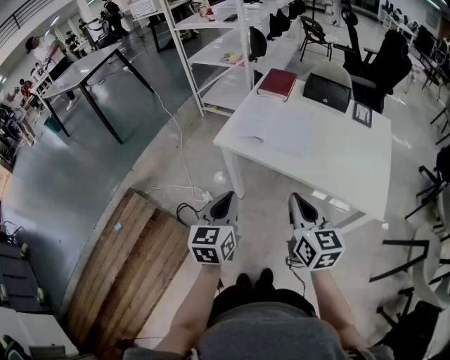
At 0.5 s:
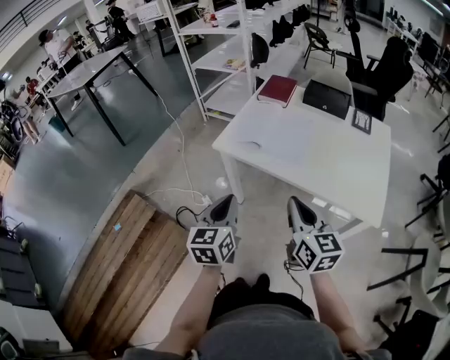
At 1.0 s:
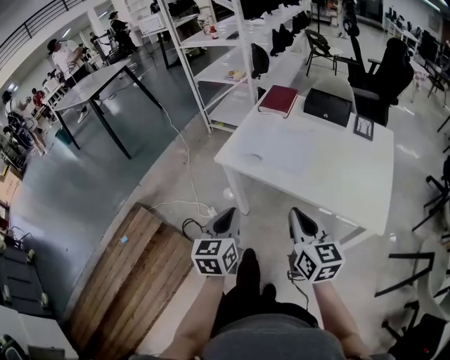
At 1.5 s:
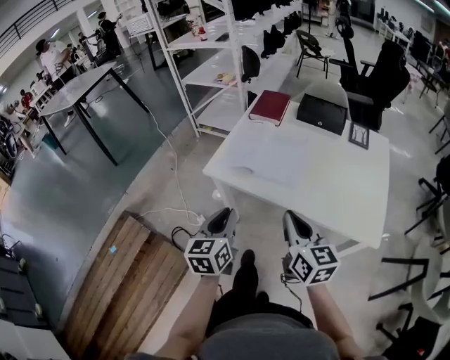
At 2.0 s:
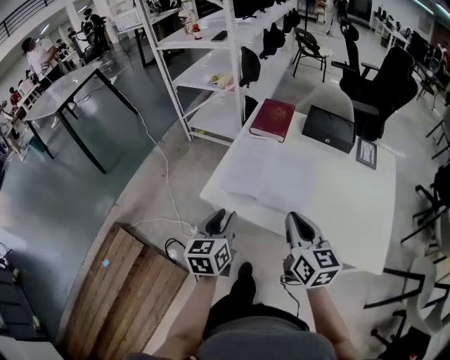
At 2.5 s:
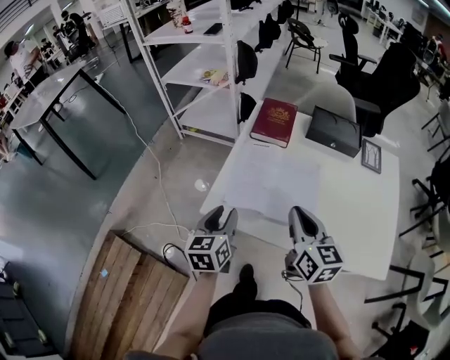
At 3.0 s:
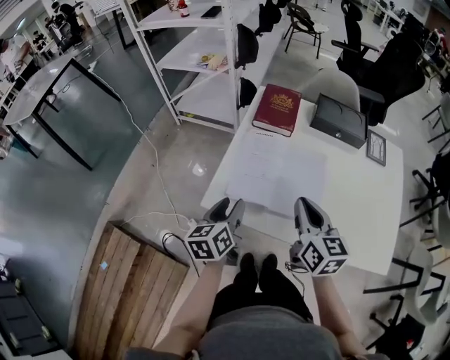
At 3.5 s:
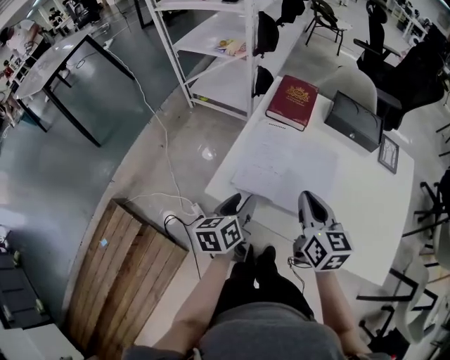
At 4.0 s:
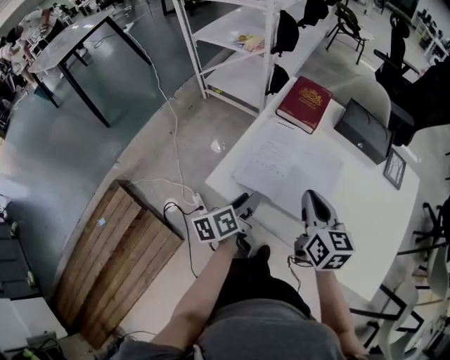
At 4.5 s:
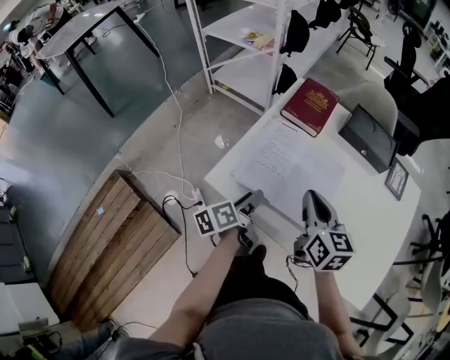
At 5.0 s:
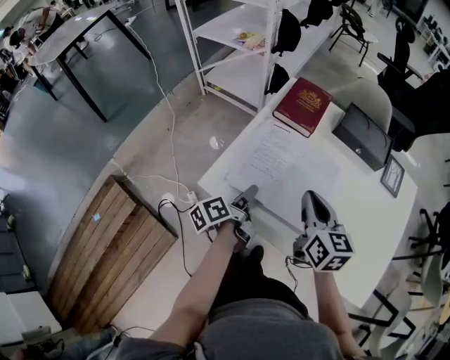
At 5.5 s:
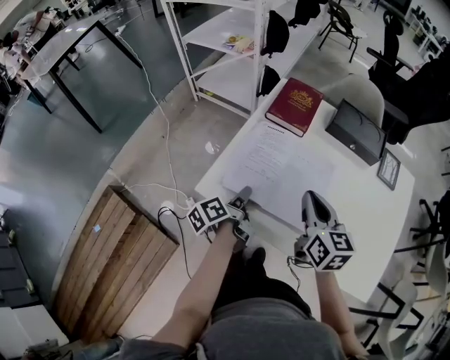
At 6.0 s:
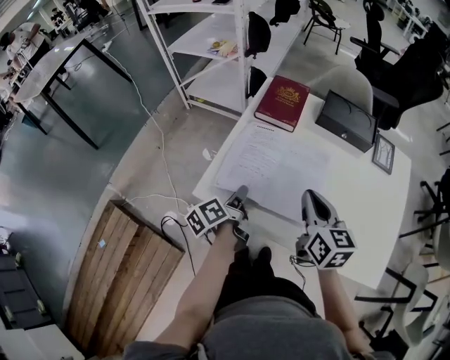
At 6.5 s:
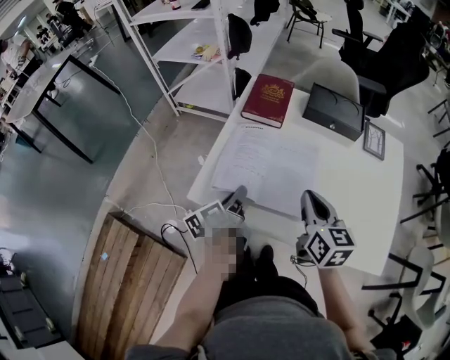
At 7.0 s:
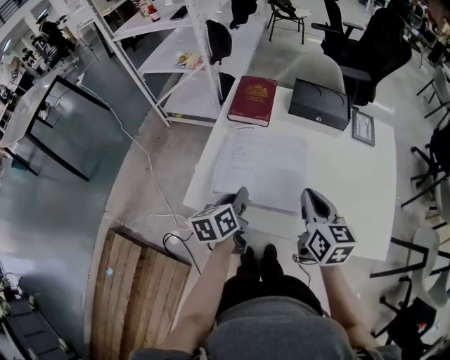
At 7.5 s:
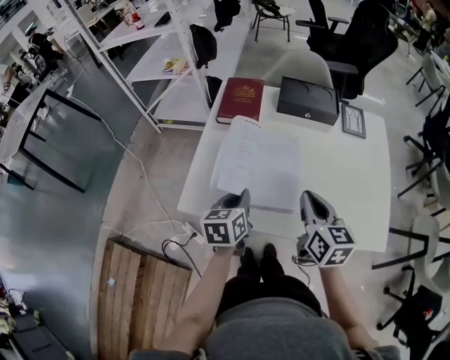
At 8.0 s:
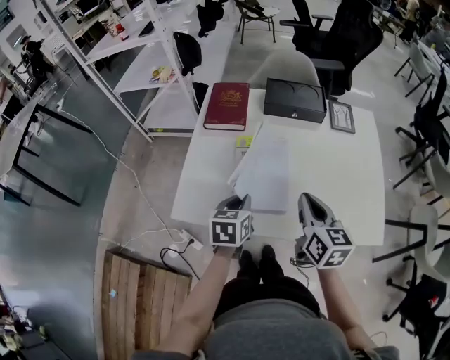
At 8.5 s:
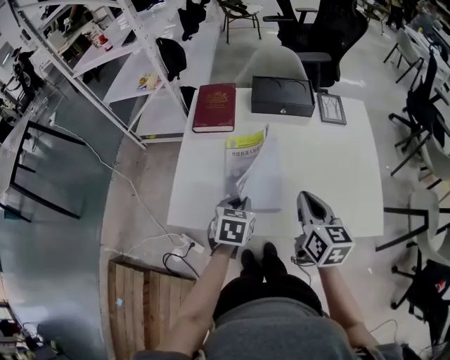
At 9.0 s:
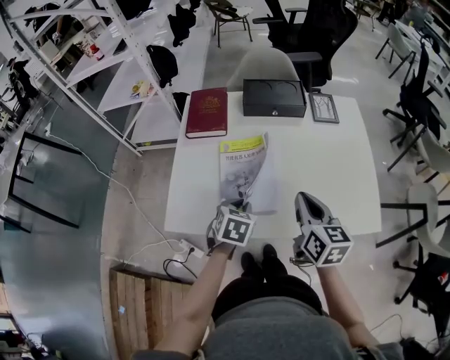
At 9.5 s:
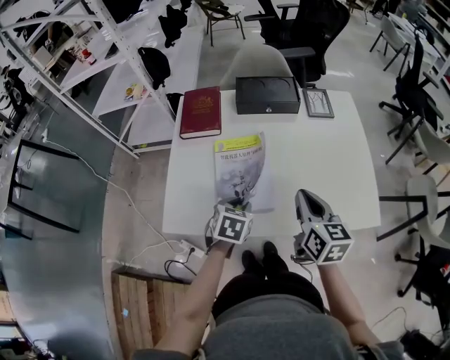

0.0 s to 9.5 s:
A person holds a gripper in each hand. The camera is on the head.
0.0 to 2.0 s: The two grippers go roughly 20 cm forward. The left gripper opens.
2.0 to 4.0 s: The left gripper moves forward and downward, approximately 10 cm, and rotates around the line of its fingers by approximately 40 degrees, counterclockwise from behind; the right gripper travels forward by some 10 cm.
5.5 to 7.5 s: The left gripper moves to the right and upward, some 10 cm, and rolls clockwise, seen from behind, by roughly 60 degrees. The right gripper heads to the right and backward, covering some 10 cm.
7.5 to 9.5 s: The right gripper goes roughly 5 cm to the right. Meanwhile the left gripper is displaced to the right and downward by about 10 cm, and swivels approximately 40 degrees.

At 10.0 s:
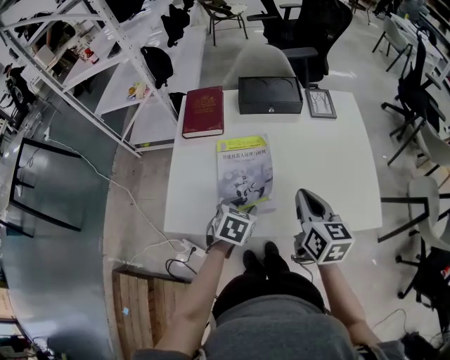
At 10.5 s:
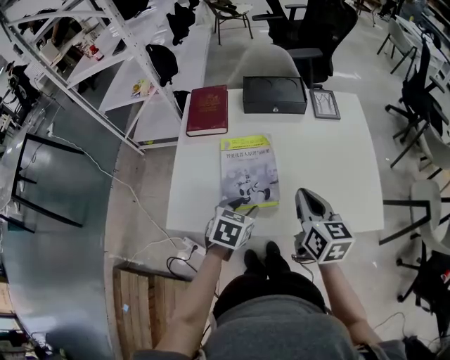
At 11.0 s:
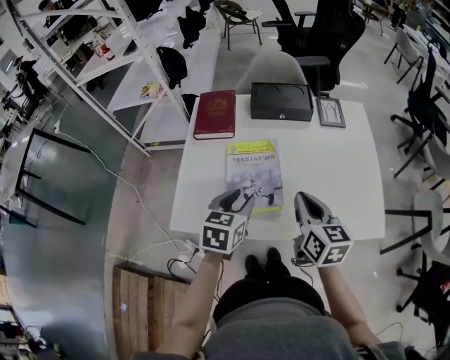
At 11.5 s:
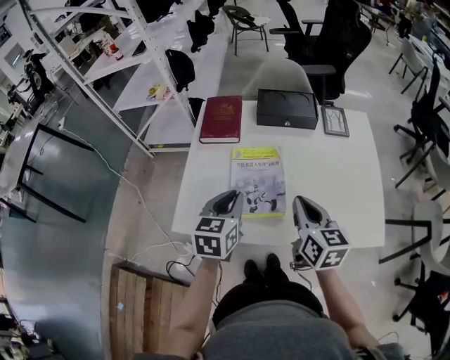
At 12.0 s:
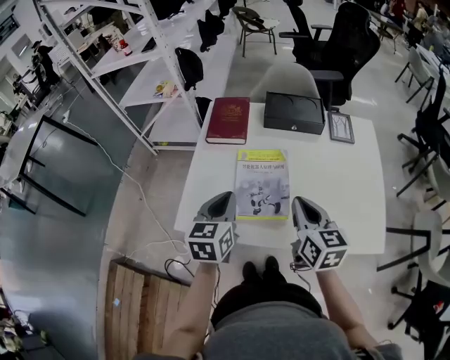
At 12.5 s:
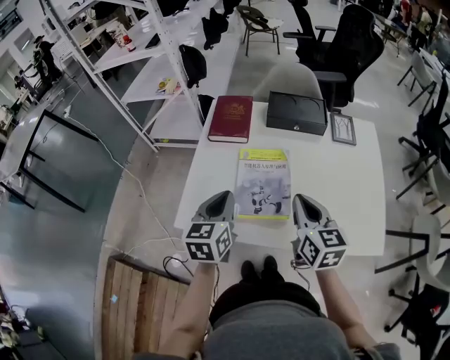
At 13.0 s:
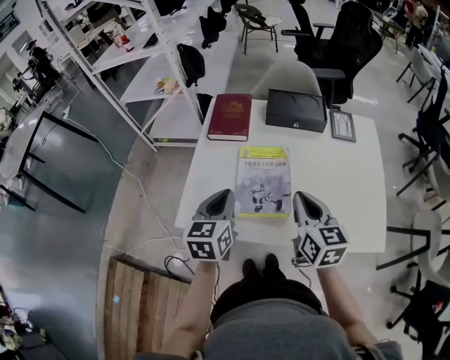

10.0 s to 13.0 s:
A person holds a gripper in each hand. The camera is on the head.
10.0 to 11.5 s: The left gripper goes about 15 cm upward and to the left, changes its angle by some 30 degrees, and closes.
11.5 to 13.0 s: The grippers make only small movements.

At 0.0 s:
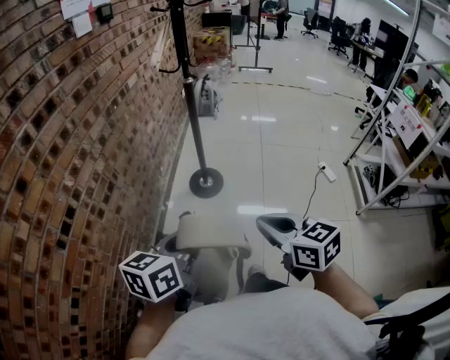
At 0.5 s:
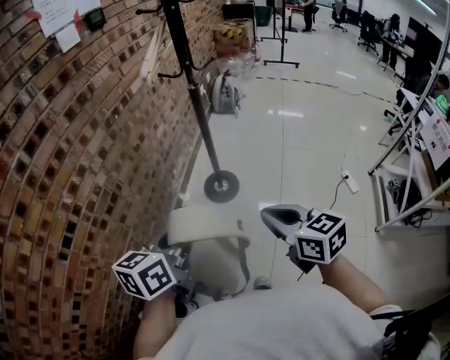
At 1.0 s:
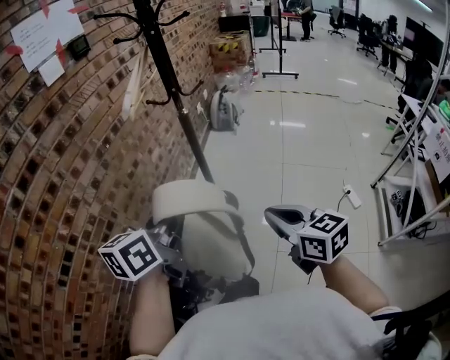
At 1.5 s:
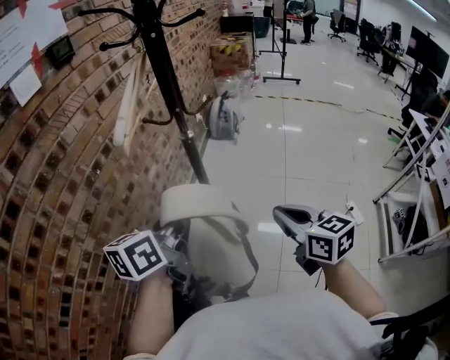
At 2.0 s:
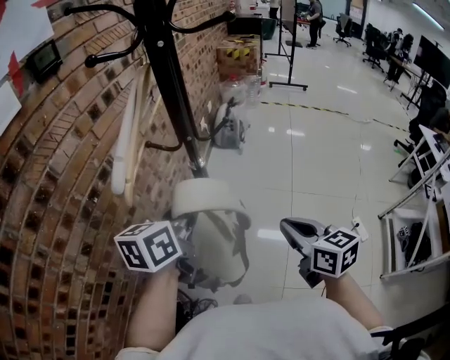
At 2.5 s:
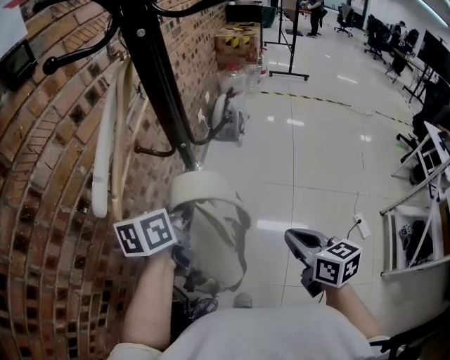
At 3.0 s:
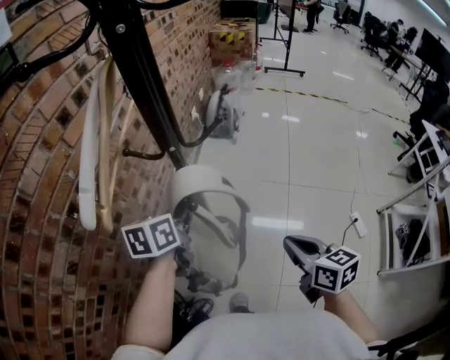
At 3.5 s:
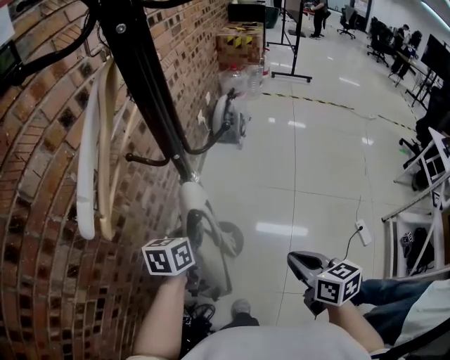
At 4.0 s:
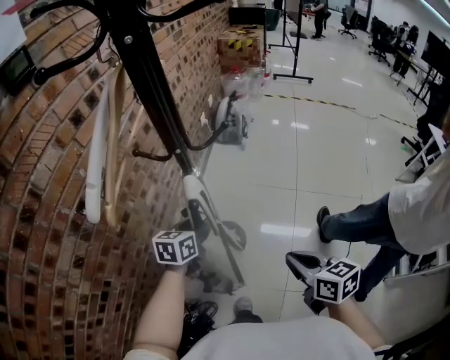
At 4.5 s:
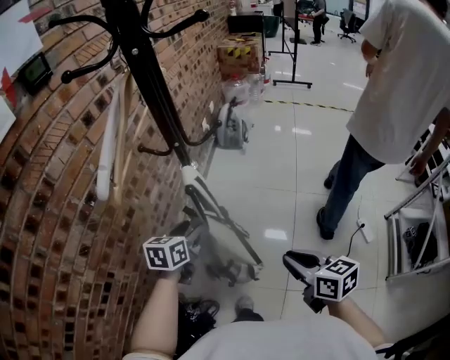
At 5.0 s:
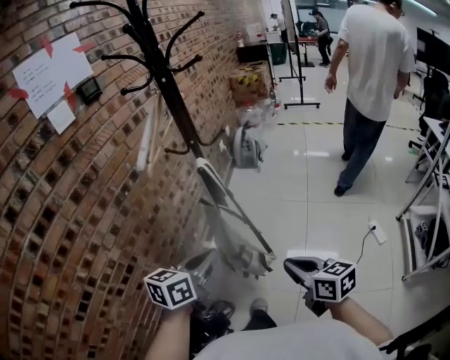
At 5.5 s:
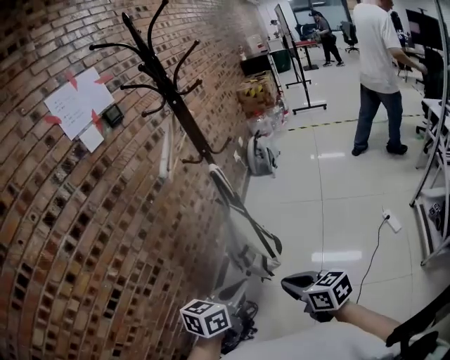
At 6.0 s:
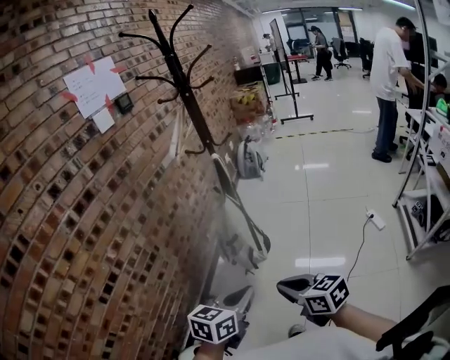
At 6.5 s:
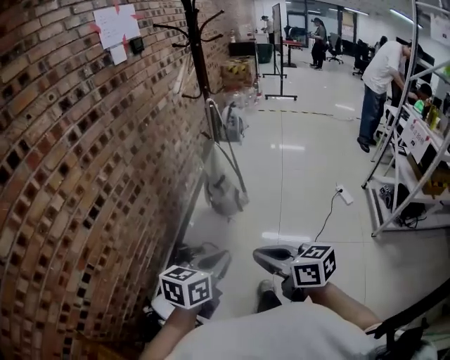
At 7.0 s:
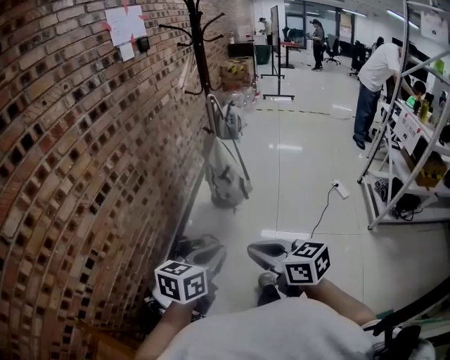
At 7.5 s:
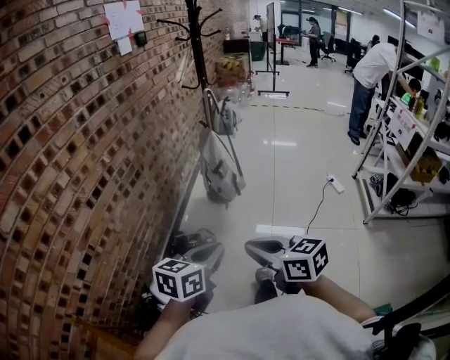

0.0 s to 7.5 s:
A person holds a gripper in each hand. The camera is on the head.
0.0 to 2.0 s: The two grippers travel together, forward, some 50 cm.
2.0 to 4.0 s: The right gripper shifts about 10 cm downward. Meanwhile the left gripper shifts approximately 20 cm downward, and opens its fingers.
4.0 to 5.5 s: The two grippers go about 40 cm backward. The left gripper closes its fingers.
5.5 to 7.5 s: The grippers both shift backward and to the left by approximately 35 cm.

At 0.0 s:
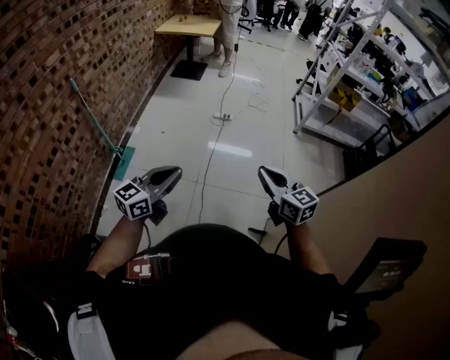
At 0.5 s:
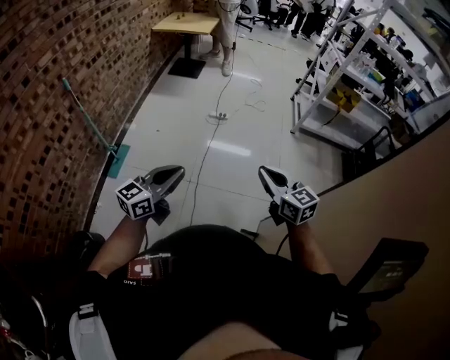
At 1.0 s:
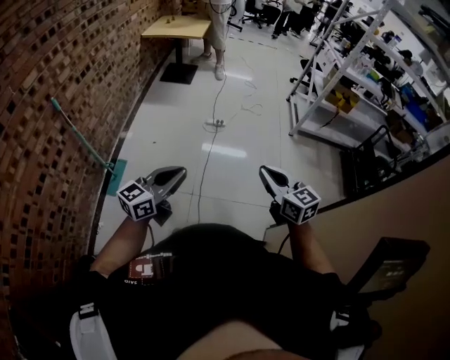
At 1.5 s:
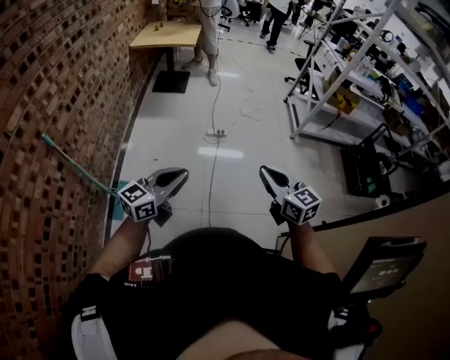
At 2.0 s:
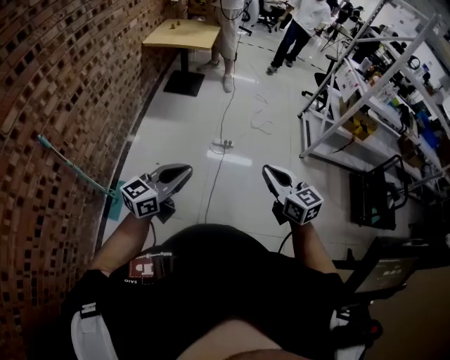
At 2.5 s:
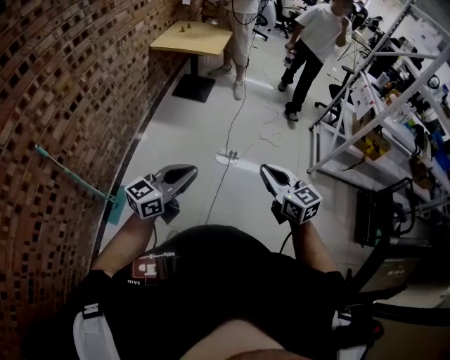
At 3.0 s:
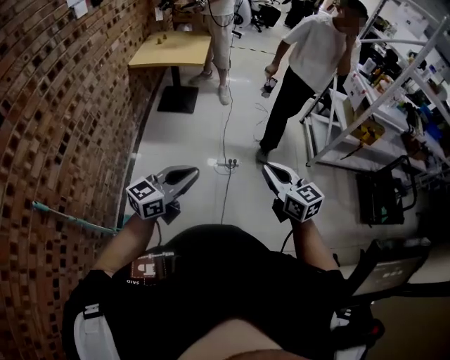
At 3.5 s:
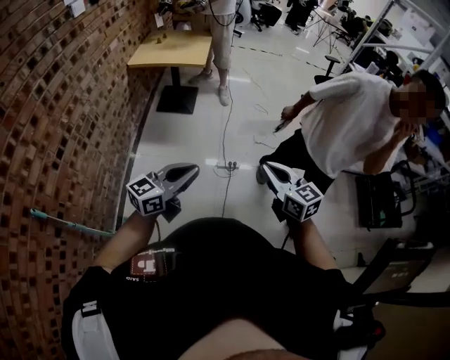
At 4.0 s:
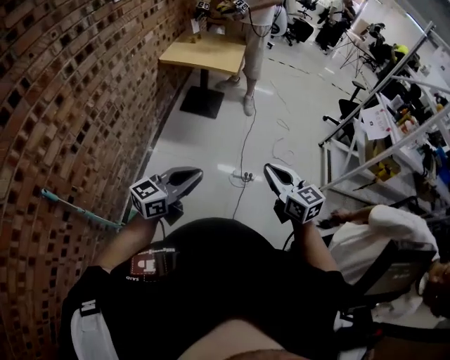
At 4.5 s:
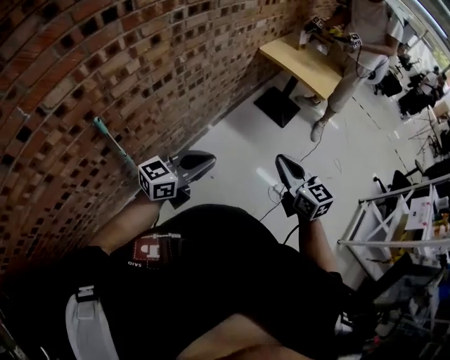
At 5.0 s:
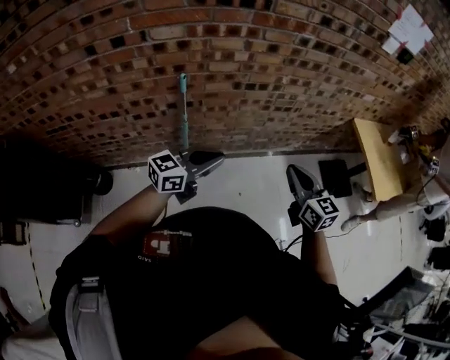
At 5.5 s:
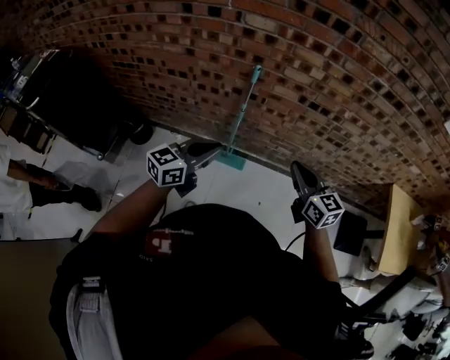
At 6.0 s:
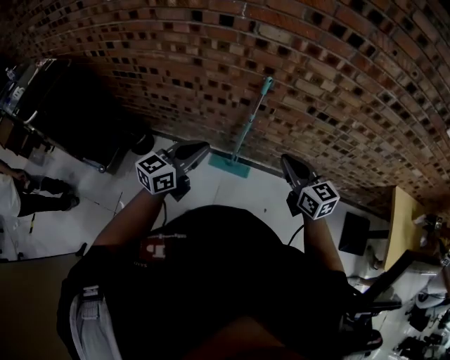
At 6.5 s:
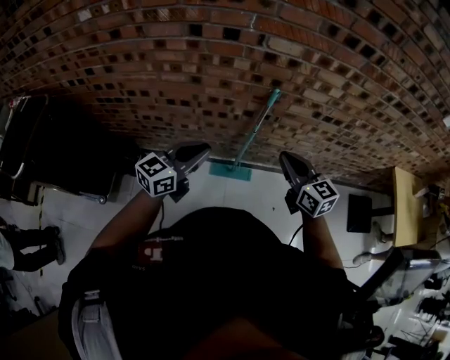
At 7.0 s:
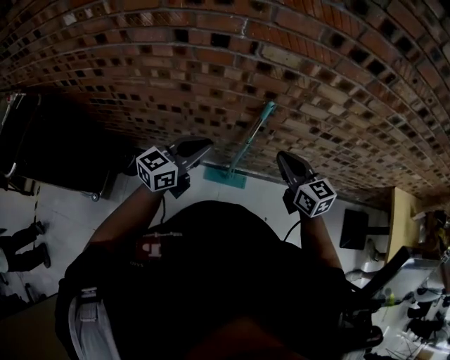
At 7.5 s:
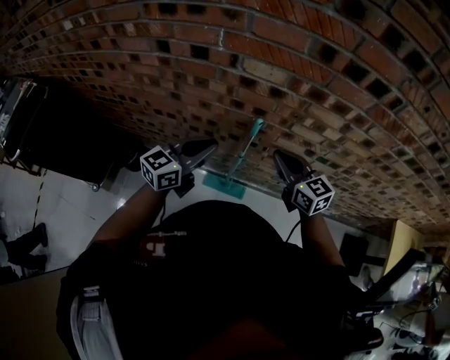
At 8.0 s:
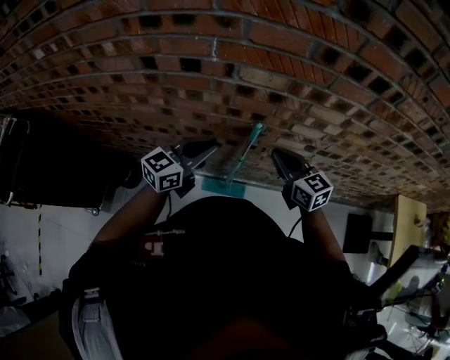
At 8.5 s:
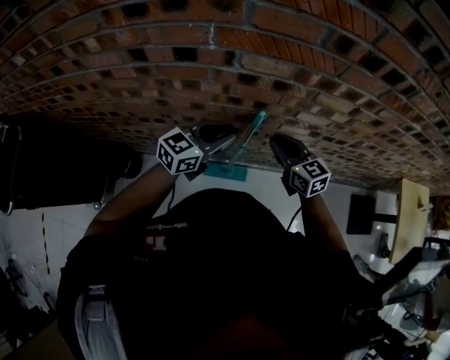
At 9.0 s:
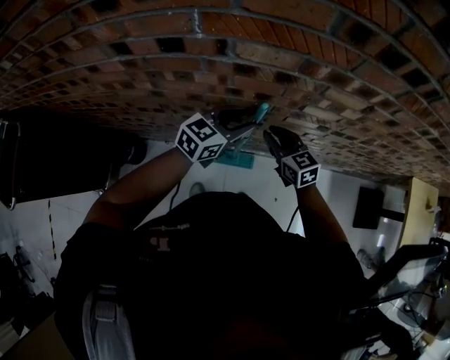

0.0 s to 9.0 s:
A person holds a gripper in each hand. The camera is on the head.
0.0 to 2.0 s: Both grippers move forward, about 35 cm.
2.0 to 4.5 s: The right gripper shifts by roughly 50 cm, and swivels approximately 30 degrees; the left gripper changes place by approximately 35 cm, and changes its angle by about 20 degrees.
4.5 to 7.0 s: The pair of grippers is taken approximately 40 cm. The left gripper swivels some 70 degrees. Meanwhile the right gripper turns by about 60 degrees.
7.0 to 9.0 s: The left gripper moves forward, to the right and downward, about 25 cm, and opens up. The right gripper heads forward and downward, covering approximately 20 cm.
